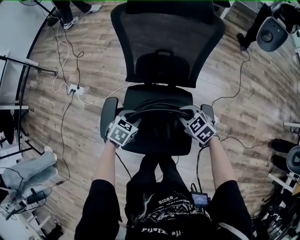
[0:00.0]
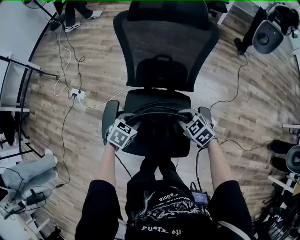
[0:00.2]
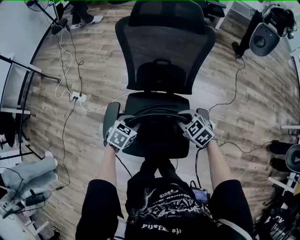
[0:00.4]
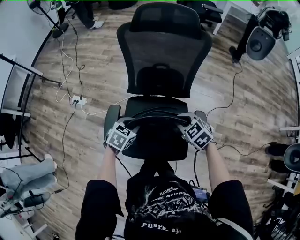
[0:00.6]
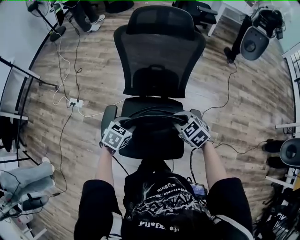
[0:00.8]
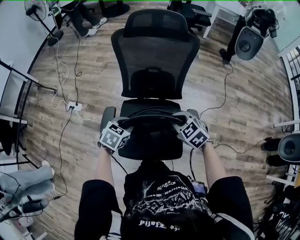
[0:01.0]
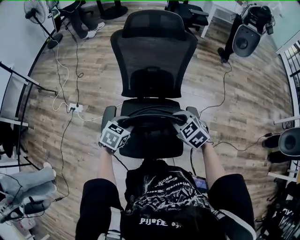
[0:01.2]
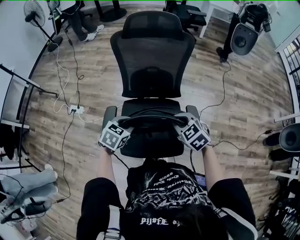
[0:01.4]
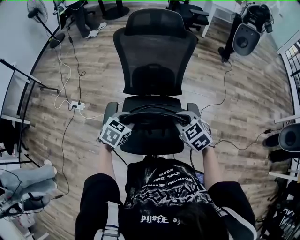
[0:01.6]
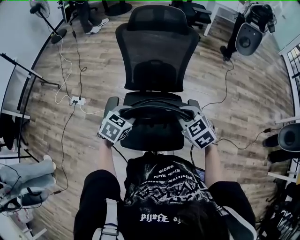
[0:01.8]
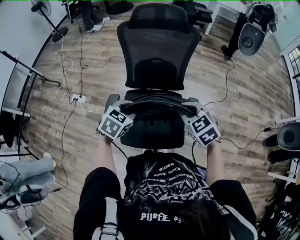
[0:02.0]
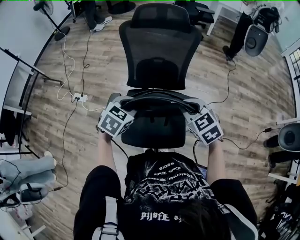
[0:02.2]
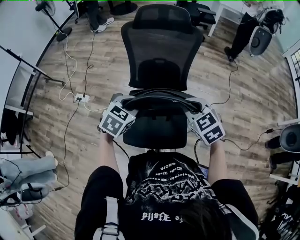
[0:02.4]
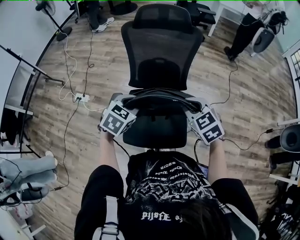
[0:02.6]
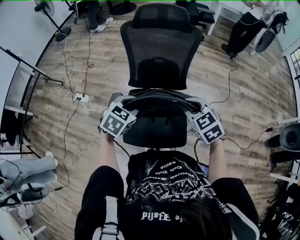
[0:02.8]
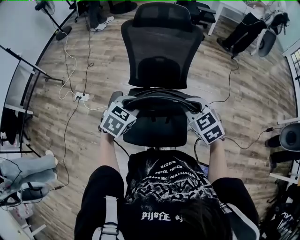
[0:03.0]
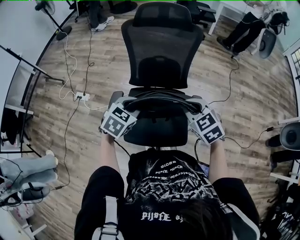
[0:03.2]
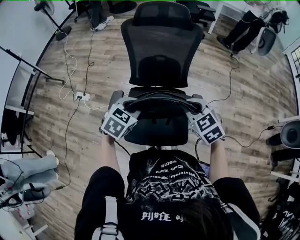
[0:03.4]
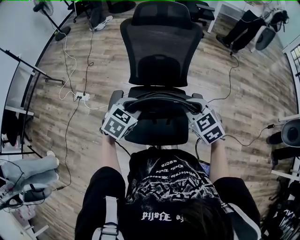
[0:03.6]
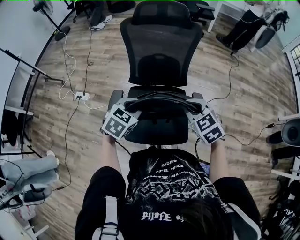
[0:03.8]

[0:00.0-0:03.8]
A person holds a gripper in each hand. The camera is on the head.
0:00.0 to 0:01.2: The grippers both shift upward and backward by roughly 15 cm.
0:01.2 to 0:02.6: The grippers both shift upward by about 10 cm.
0:02.6 to 0:03.8: The grippers move only a little.

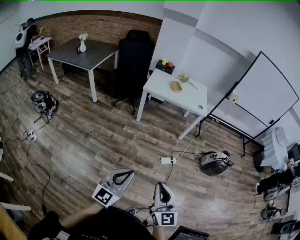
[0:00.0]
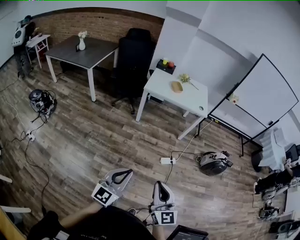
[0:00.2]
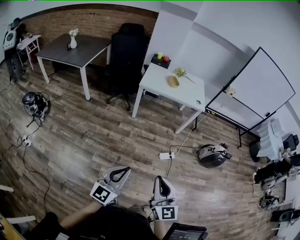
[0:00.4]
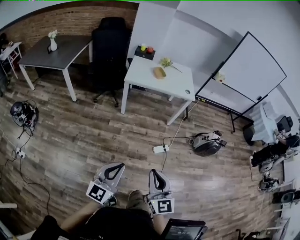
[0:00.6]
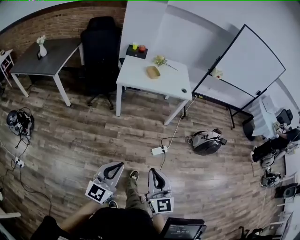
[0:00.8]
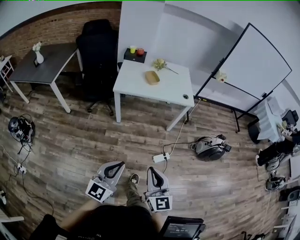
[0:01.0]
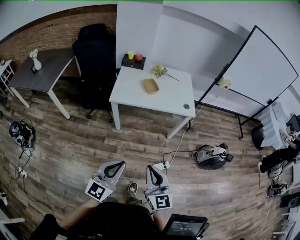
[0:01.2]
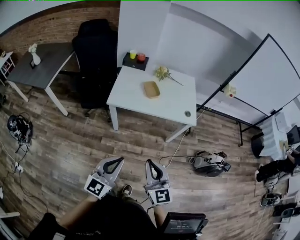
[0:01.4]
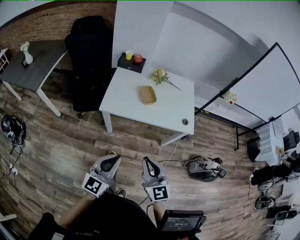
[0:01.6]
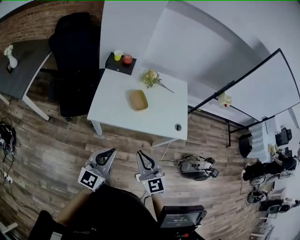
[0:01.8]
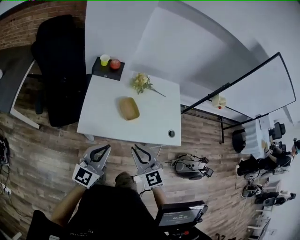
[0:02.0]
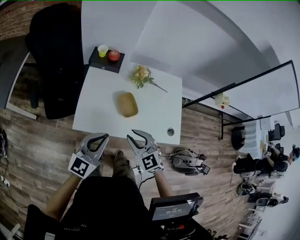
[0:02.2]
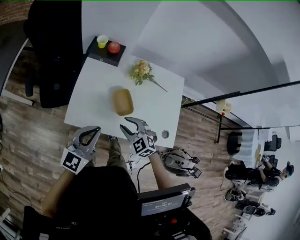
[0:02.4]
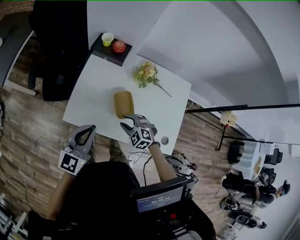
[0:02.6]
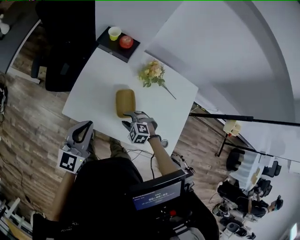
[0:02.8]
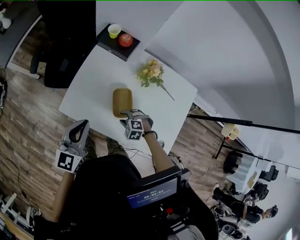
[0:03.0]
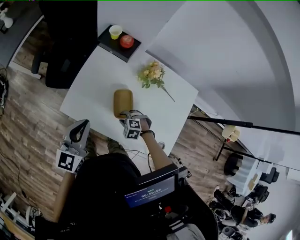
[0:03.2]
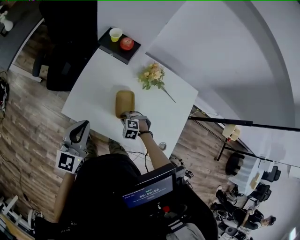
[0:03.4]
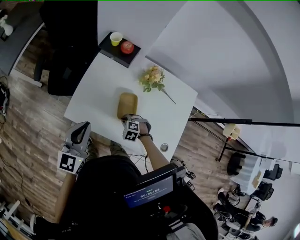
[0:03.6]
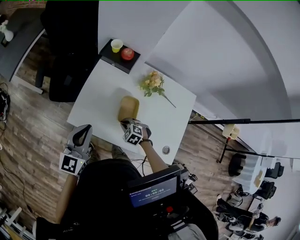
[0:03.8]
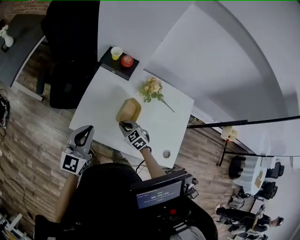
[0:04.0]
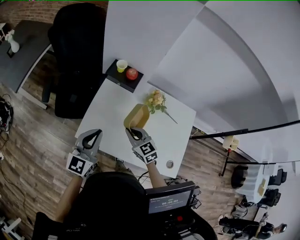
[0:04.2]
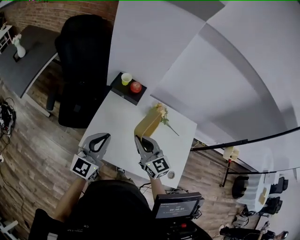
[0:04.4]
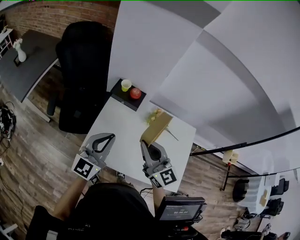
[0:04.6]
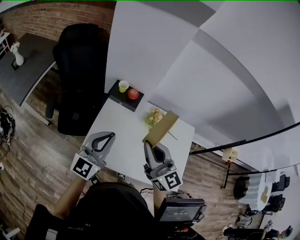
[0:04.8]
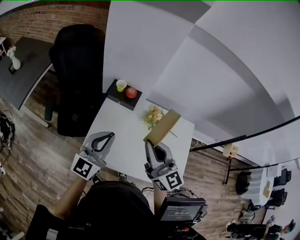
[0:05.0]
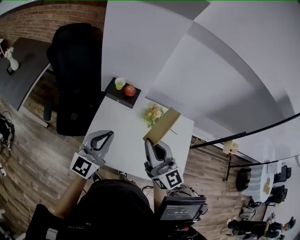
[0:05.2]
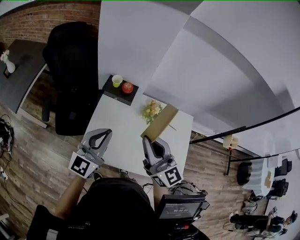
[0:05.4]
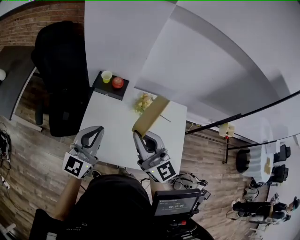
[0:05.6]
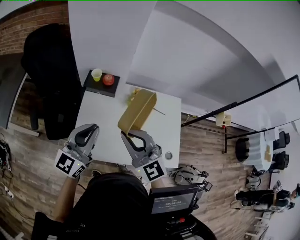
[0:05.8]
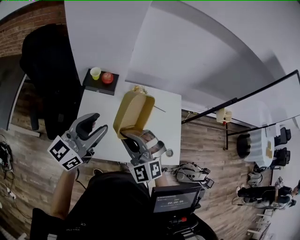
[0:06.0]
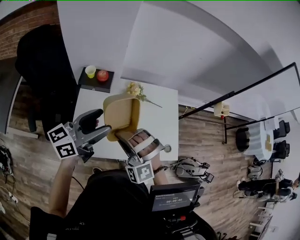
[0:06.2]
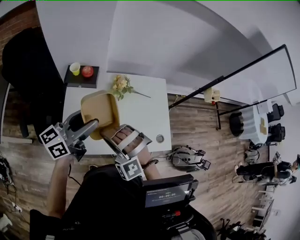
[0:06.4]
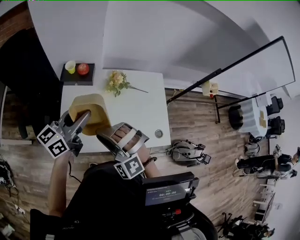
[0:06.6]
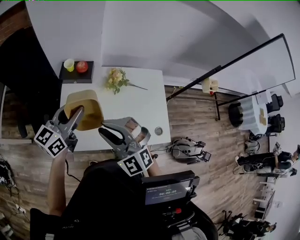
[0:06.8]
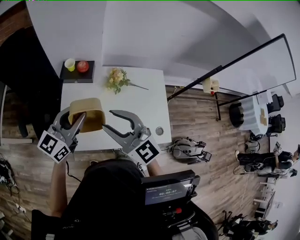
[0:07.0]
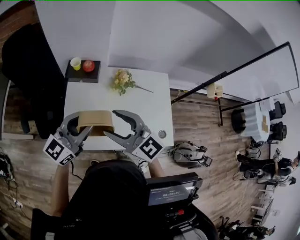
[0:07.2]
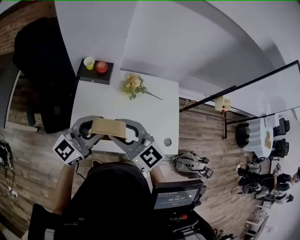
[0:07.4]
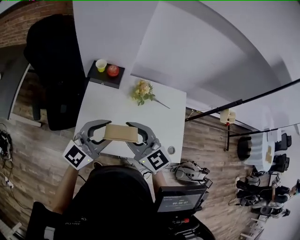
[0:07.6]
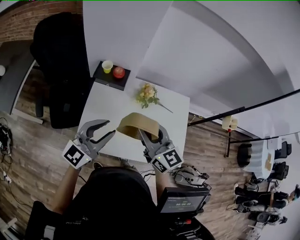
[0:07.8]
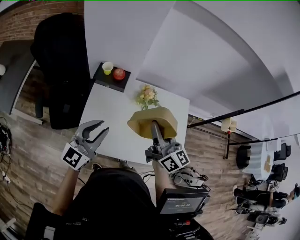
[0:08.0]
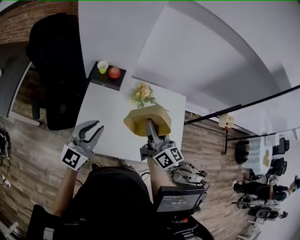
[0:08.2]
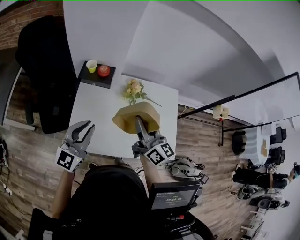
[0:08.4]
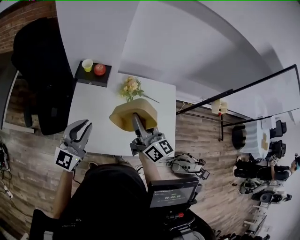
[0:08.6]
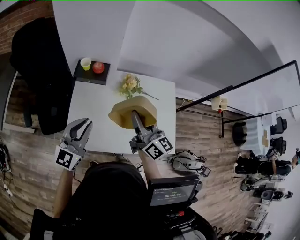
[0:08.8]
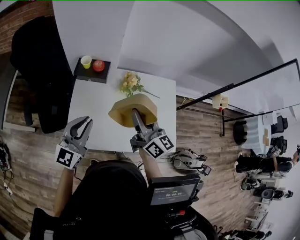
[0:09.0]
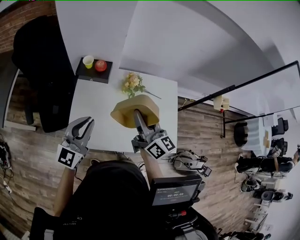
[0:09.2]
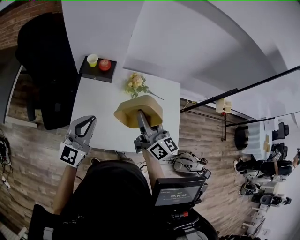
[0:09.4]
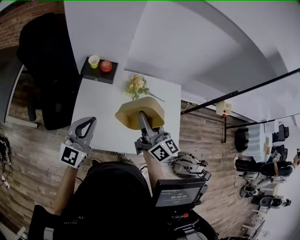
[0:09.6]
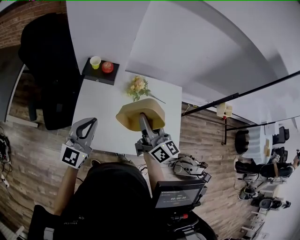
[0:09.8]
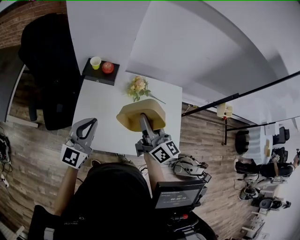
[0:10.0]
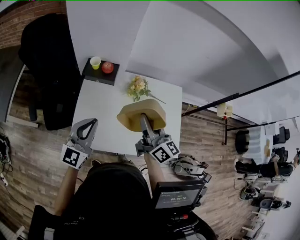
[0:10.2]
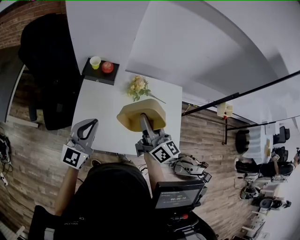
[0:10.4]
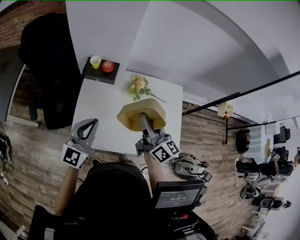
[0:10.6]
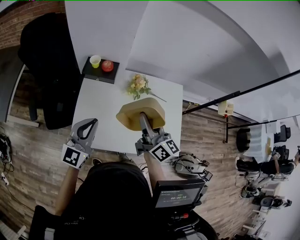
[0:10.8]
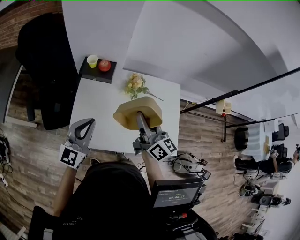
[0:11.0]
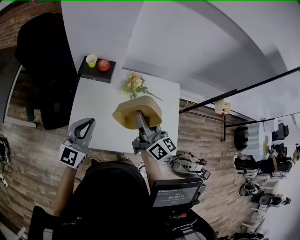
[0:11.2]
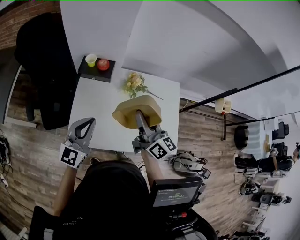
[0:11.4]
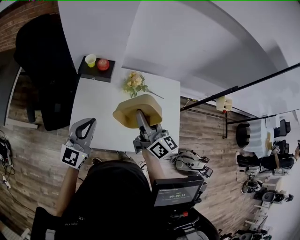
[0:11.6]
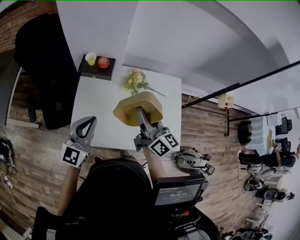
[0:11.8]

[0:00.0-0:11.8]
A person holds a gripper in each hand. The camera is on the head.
0:00.0 to 0:01.4: The two grippers travel together, forward, roughly 50 cm.
0:01.4 to 0:03.0: The pair of grippers is taken about 50 cm. The right gripper tips its fingers downward by about 60 degrees, and opens up. The left gripper changes its angle by some 30 degrees.
0:03.0 to 0:04.4: The right gripper moves upward, roughly 30 cm, tilts its fingers roughly 60 degrees upward, and closes up; the left gripper heads upward and forward, covering approximately 10 cm.
0:04.4 to 0:06.0: The right gripper heads upward, covering about 5 cm, and rolls counterclockwise, seen from behind, by about 50 degrees, while the left gripper is displaced upward and to the right by approximately 10 cm, swivels some 30 degrees, and opens.
0:06.0 to 0:07.4: The right gripper rolls clockwise, seen from behind, by some 40 degrees, and opens. Meanwhile the left gripper ends up about 5 cm from where it was.
0:07.4 to 0:08.8: The left gripper heads to the left, covering about 5 cm, and changes its angle by roughly 20 degrees. Meanwhile the right gripper heads to the right and forward, covering approximately 15 cm, and swivels roughly 50 degrees.
0:08.8 to 0:10.4: Both grippers stay put.
0:10.4 to 0:11.8: Both grippers stay about where they are.

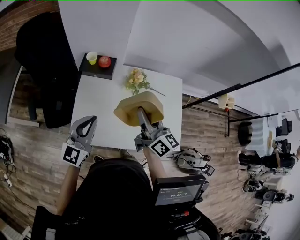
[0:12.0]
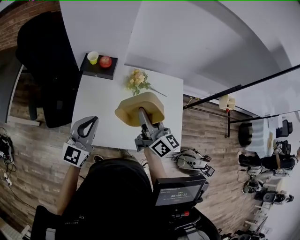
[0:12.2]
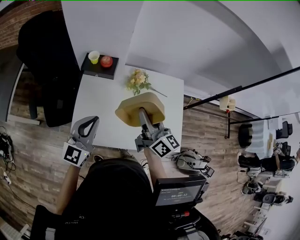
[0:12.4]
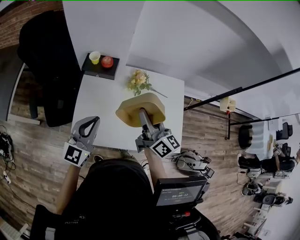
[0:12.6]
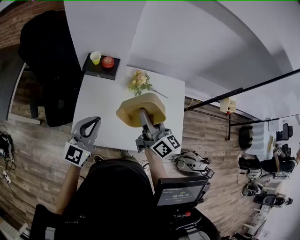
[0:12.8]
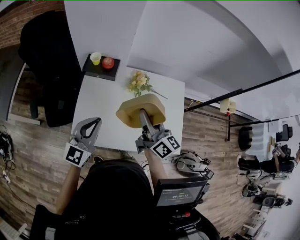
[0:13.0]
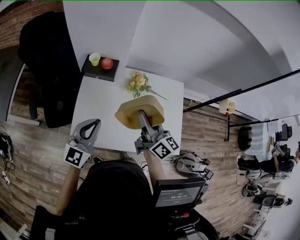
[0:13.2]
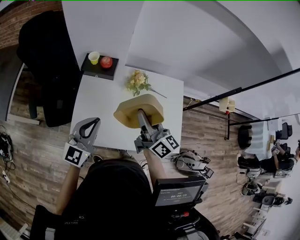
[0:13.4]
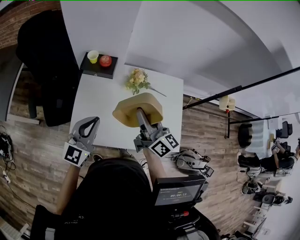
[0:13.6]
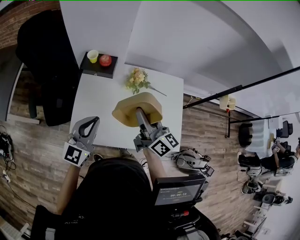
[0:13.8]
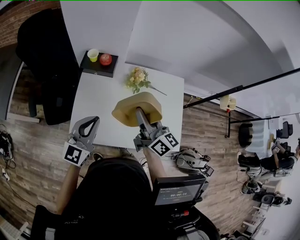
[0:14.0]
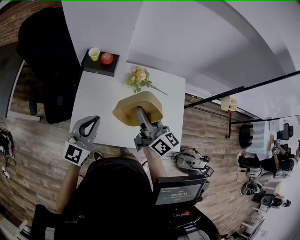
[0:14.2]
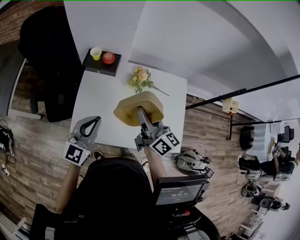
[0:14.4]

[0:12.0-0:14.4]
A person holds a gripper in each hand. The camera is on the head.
0:12.0 to 0:13.2: Neither gripper changes place.
0:13.2 to 0:14.4: The grippers stay close to where they were, moving slightly.

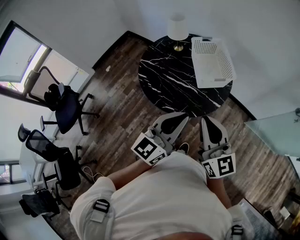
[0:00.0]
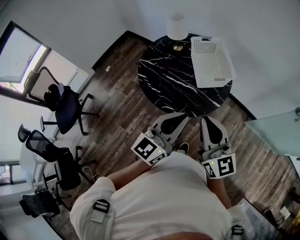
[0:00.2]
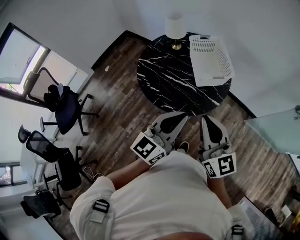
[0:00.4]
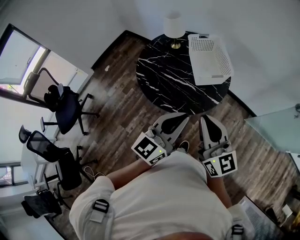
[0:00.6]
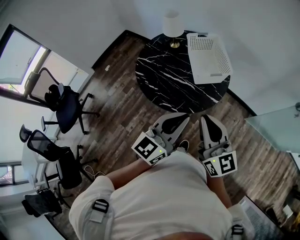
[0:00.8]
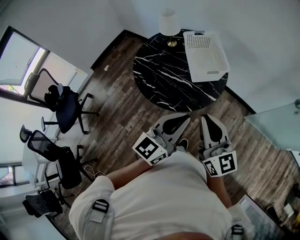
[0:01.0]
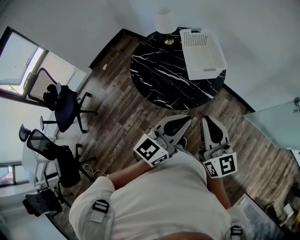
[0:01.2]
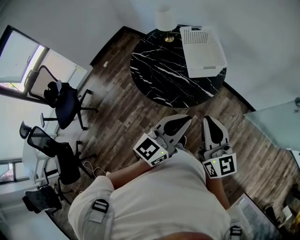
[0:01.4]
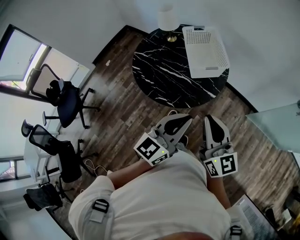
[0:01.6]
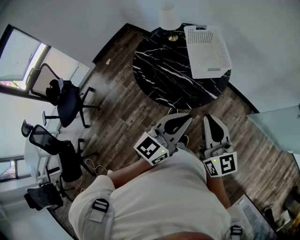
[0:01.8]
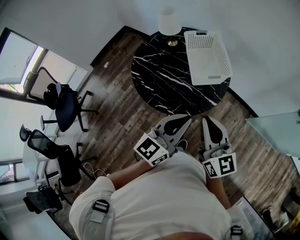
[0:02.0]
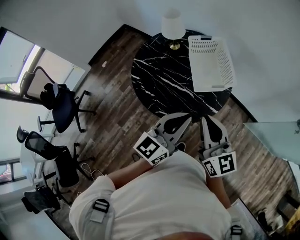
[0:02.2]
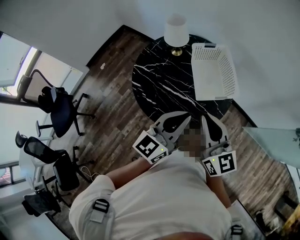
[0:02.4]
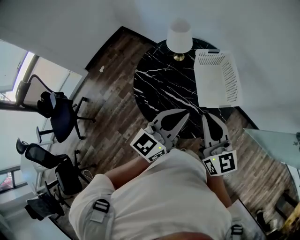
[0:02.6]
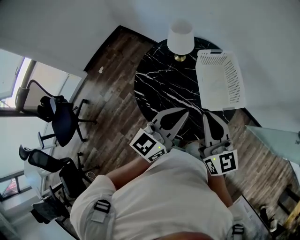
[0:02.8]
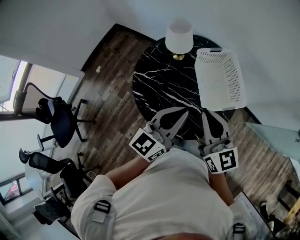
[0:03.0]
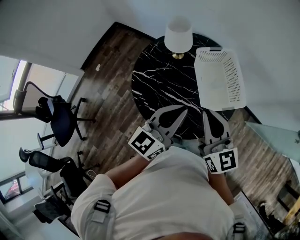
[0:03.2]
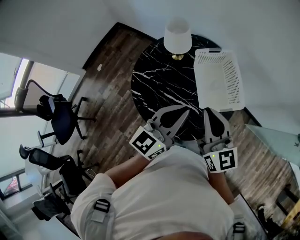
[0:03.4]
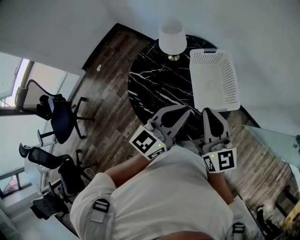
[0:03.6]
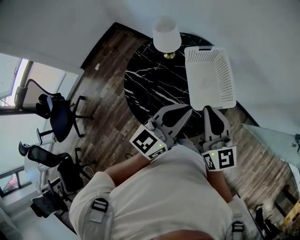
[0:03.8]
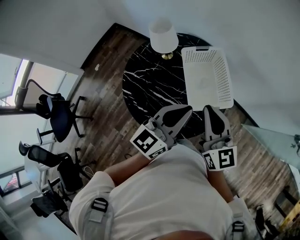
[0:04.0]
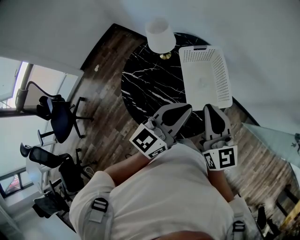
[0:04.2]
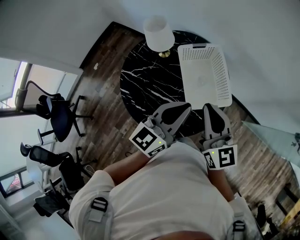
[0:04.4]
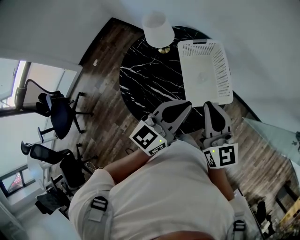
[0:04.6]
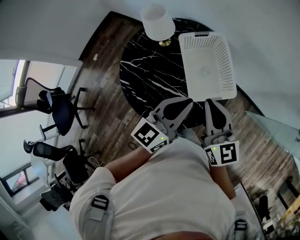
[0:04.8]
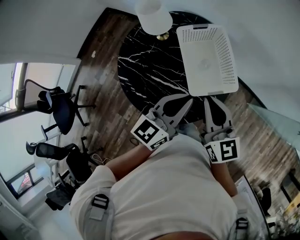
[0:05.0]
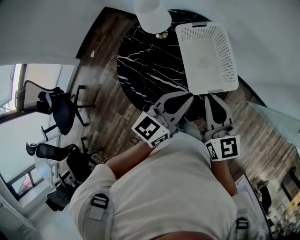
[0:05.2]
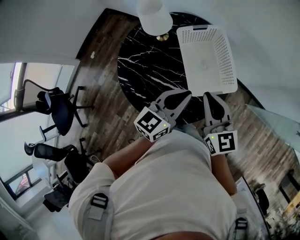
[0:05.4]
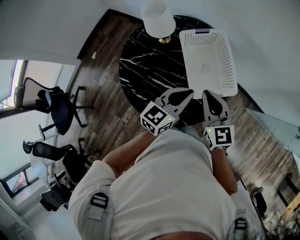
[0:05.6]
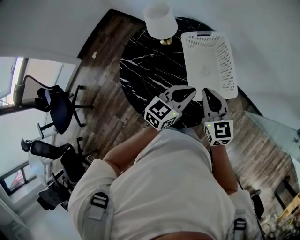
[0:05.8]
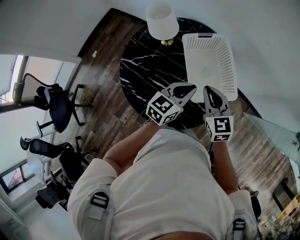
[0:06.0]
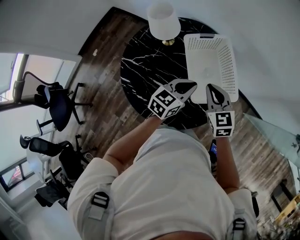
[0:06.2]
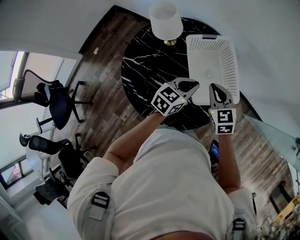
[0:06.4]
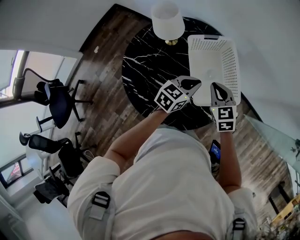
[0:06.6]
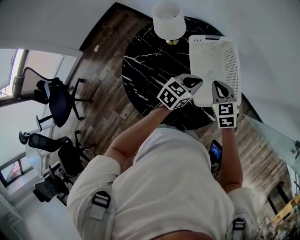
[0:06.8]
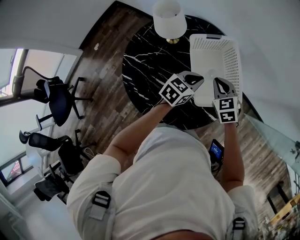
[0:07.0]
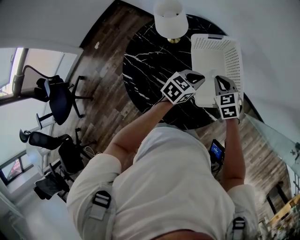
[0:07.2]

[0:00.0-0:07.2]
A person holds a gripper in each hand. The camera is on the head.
0:00.0 to 0:01.4: Both grippers travel together to the right, some 10 cm.
0:01.4 to 0:02.8: The grippers both shift forward and to the left by about 30 cm.
0:02.8 to 0:04.4: The grippers both shift to the right and forward by approximately 15 cm.
0:04.4 to 0:05.8: The grippers both shift downward by approximately 10 cm.
0:05.8 to 0:07.2: The grippers both shift downward and forward by some 15 cm. The right gripper turns by some 30 degrees.
